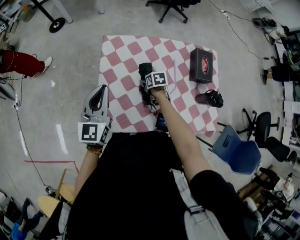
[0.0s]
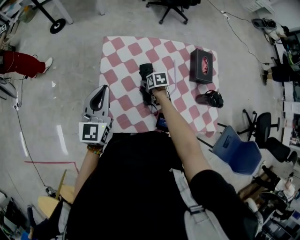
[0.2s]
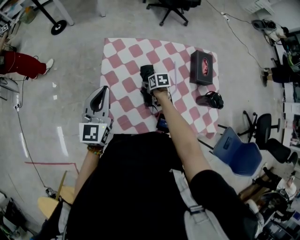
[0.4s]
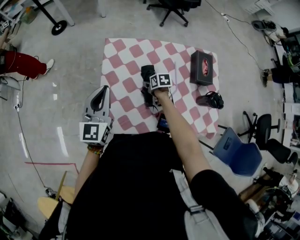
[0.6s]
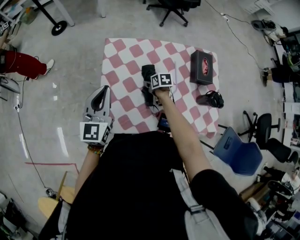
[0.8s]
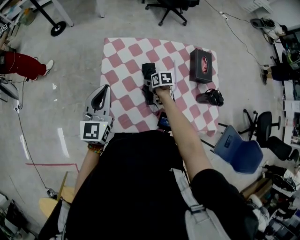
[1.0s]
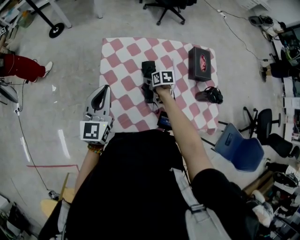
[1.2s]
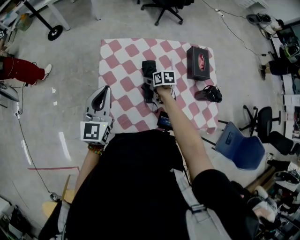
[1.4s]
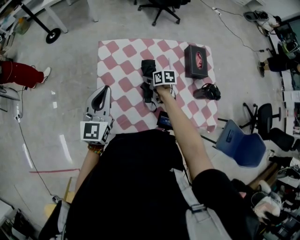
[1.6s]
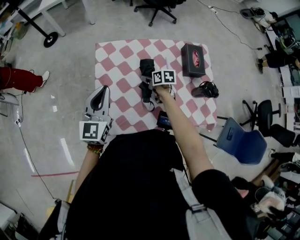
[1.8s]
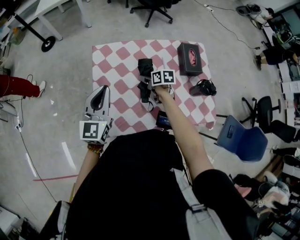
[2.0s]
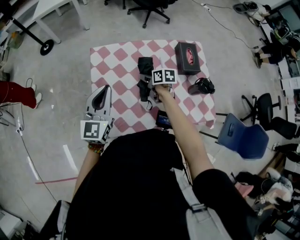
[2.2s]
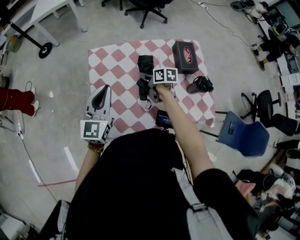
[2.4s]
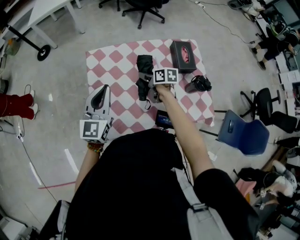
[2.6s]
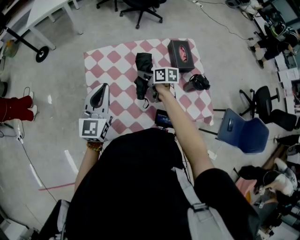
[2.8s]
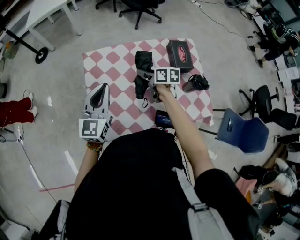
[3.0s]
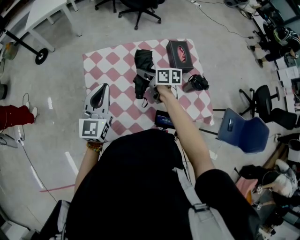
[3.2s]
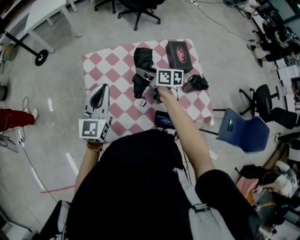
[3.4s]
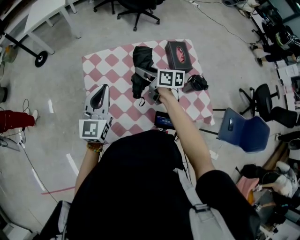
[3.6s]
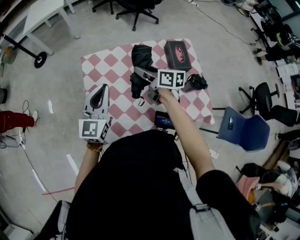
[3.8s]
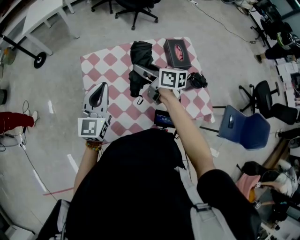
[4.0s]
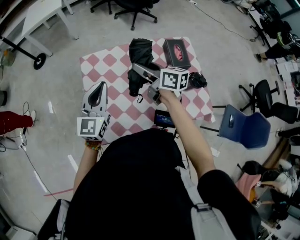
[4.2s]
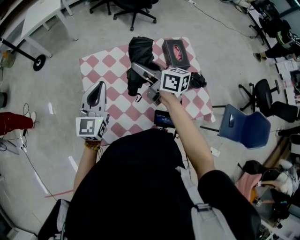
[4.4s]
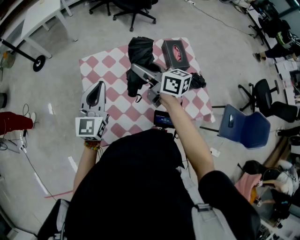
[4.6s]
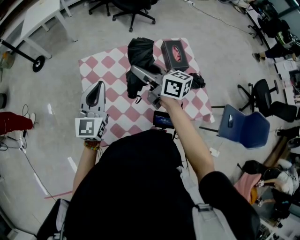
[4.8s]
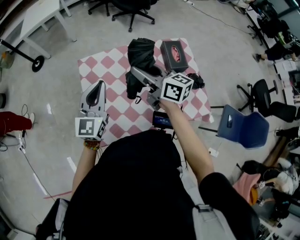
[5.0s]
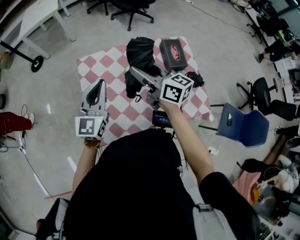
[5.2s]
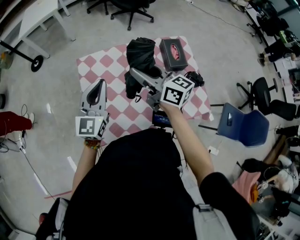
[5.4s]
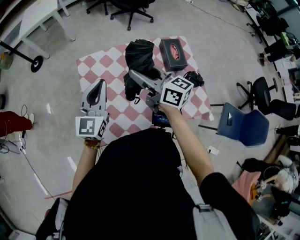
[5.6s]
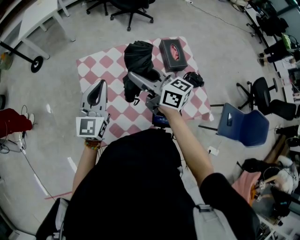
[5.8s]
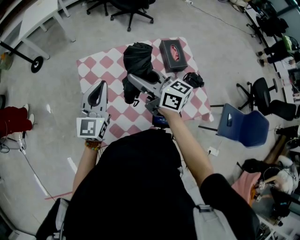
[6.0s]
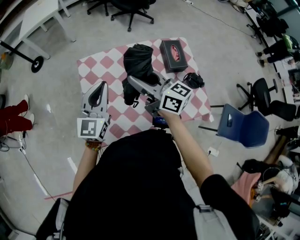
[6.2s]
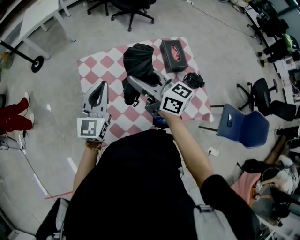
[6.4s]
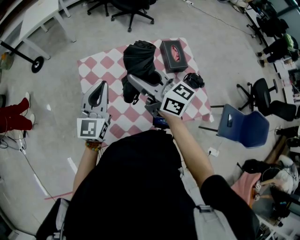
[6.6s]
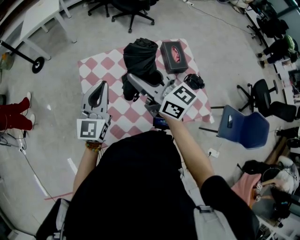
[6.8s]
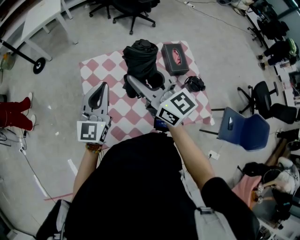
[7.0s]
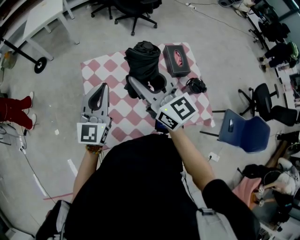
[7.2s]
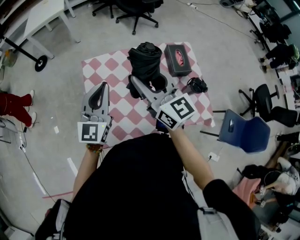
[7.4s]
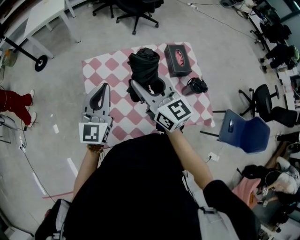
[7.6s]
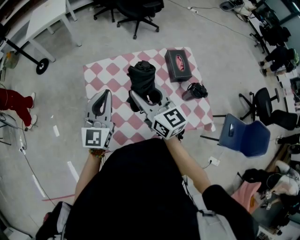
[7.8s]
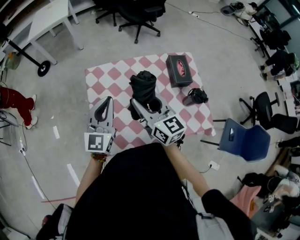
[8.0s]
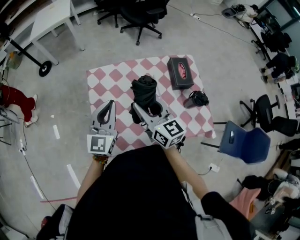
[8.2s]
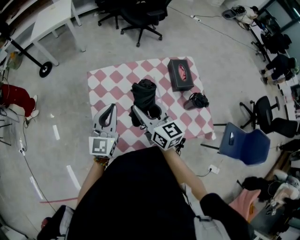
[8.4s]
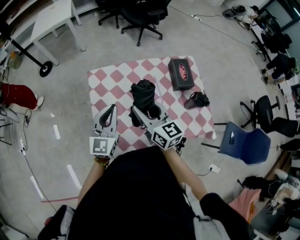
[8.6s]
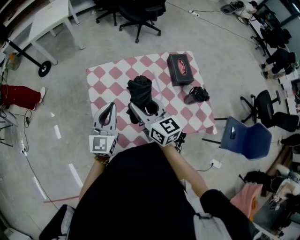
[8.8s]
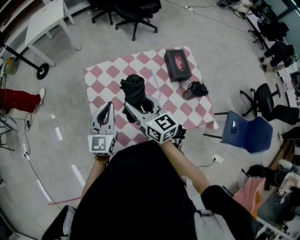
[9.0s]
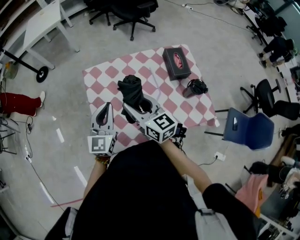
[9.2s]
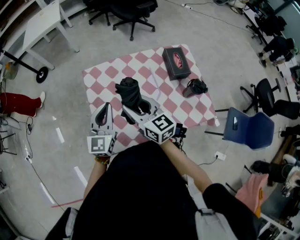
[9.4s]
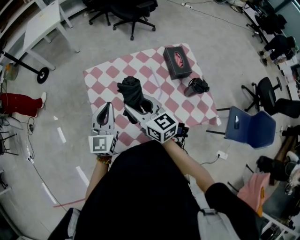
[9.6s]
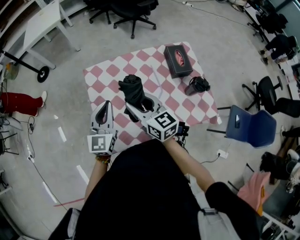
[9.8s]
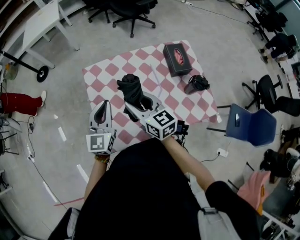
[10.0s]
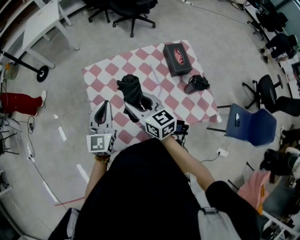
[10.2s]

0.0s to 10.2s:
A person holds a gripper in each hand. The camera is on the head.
0.0s to 1.4s: The grippers move only a little.
1.4s to 3.0s: The right gripper goes approximately 10 cm upward, and swivels approximately 20 degrees, while the left gripper moves to the right, about 5 cm.
3.0s to 4.4s: The right gripper travels upward by approximately 15 cm, and changes its angle by roughly 30 degrees.
4.4s to 5.8s: The right gripper shifts by some 5 cm.
5.8s to 7.2s: The right gripper goes some 5 cm upward, and swivels about 30 degrees.
7.2s to 8.8s: The left gripper moves downward, about 5 cm. The right gripper goes about 10 cm downward.
8.8s to 10.2s: The grippers stay close to where they were, moving slightly.

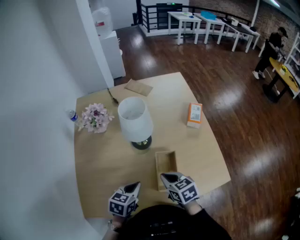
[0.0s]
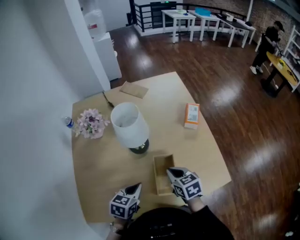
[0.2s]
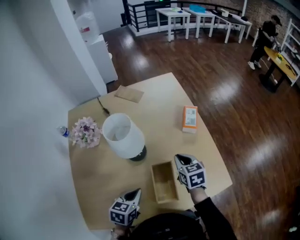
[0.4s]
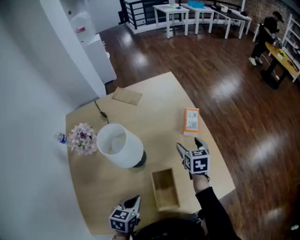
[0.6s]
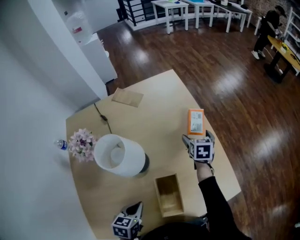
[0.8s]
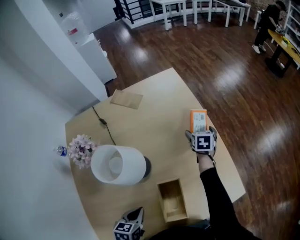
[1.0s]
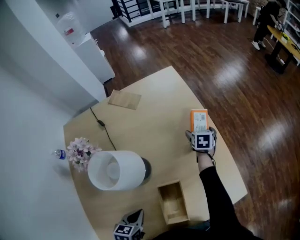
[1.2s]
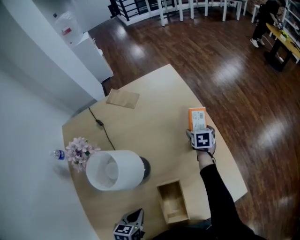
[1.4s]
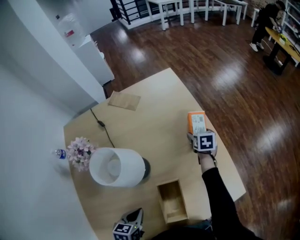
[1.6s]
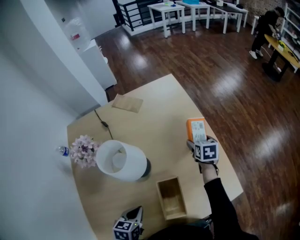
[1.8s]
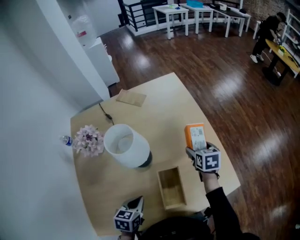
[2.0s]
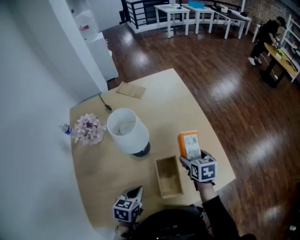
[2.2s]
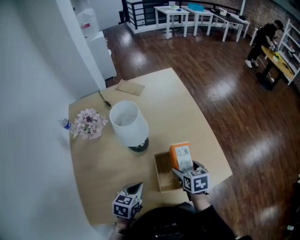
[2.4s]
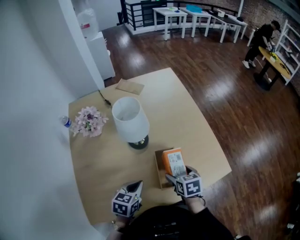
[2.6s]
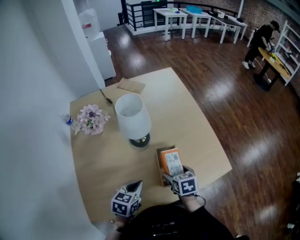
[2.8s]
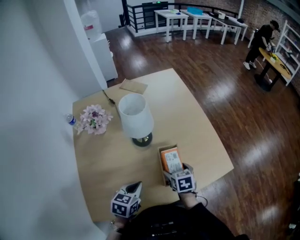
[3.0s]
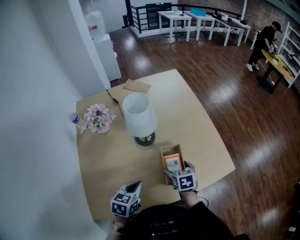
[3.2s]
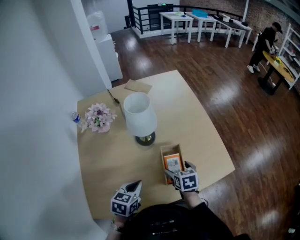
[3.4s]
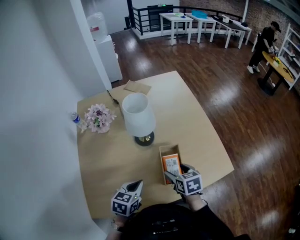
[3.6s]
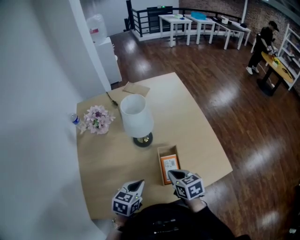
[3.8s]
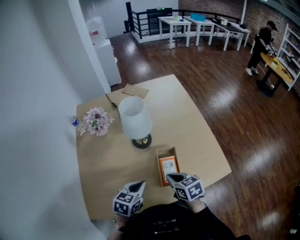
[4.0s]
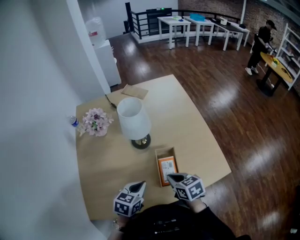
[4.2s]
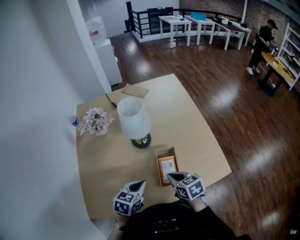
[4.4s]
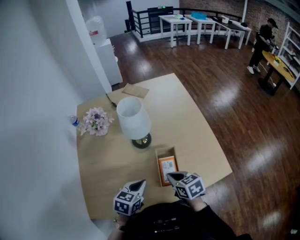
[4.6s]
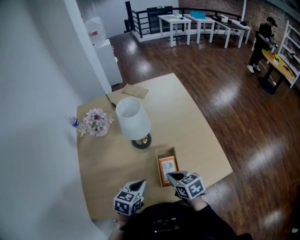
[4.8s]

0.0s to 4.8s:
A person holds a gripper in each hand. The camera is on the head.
0.0s to 1.6s: The left gripper moves roughly 5 cm. The right gripper shifts by roughly 40 cm, changes its angle by roughly 40 degrees, and opens its fingers.
1.6s to 3.2s: The right gripper goes about 35 cm backward. Meanwhile the left gripper goes approximately 10 cm backward.
3.2s to 4.8s: The right gripper is displaced upward by roughly 5 cm, changes its angle by roughly 20 degrees, and closes up, while the left gripper heads to the right, covering approximately 5 cm.

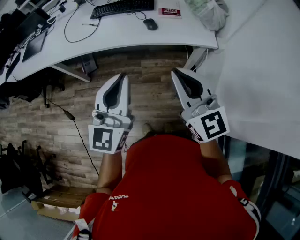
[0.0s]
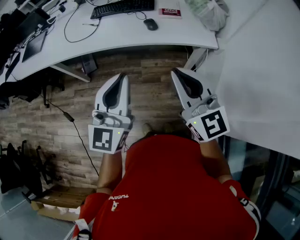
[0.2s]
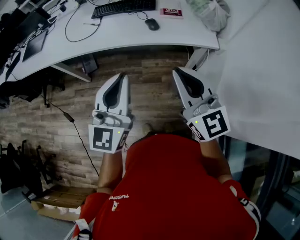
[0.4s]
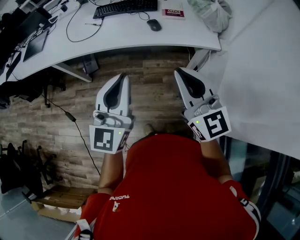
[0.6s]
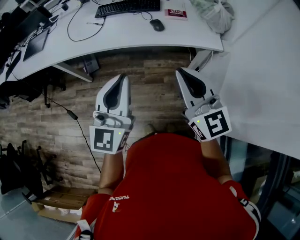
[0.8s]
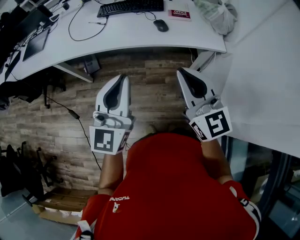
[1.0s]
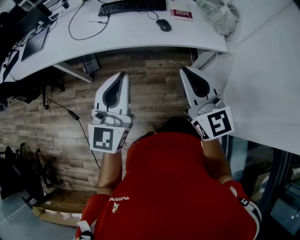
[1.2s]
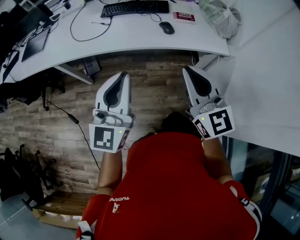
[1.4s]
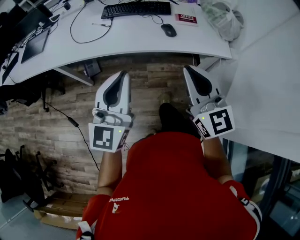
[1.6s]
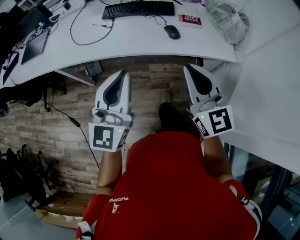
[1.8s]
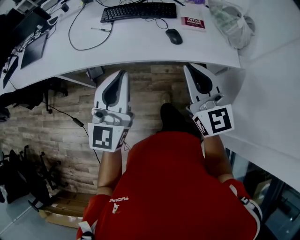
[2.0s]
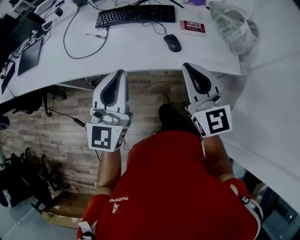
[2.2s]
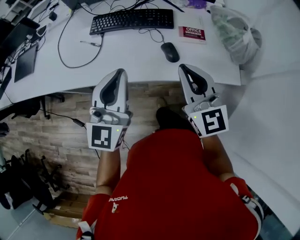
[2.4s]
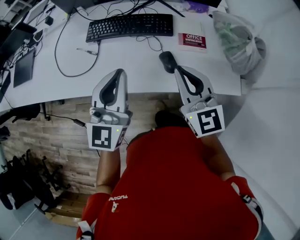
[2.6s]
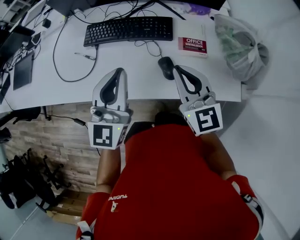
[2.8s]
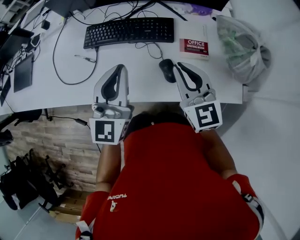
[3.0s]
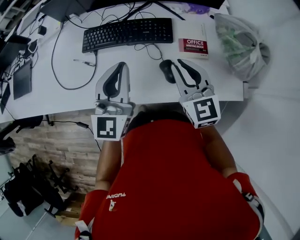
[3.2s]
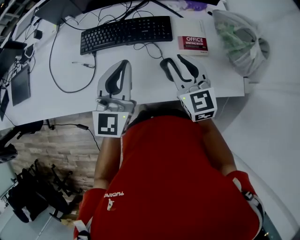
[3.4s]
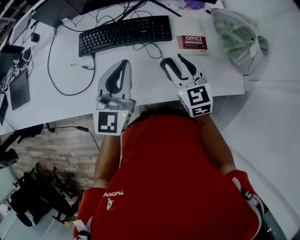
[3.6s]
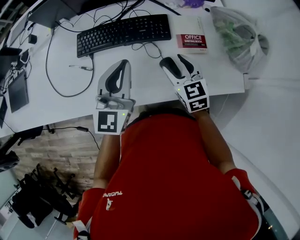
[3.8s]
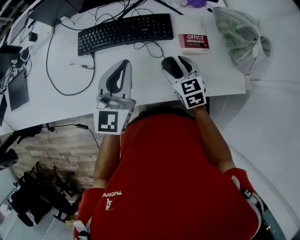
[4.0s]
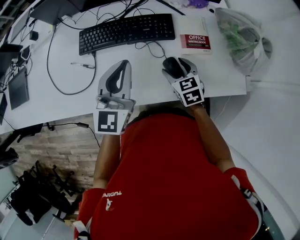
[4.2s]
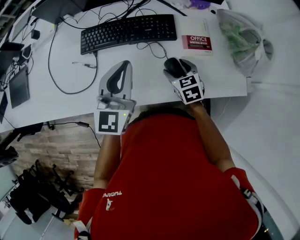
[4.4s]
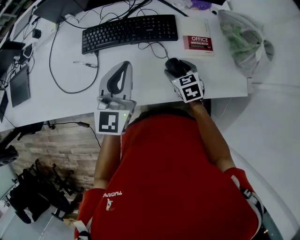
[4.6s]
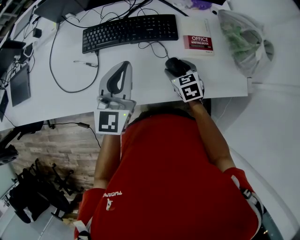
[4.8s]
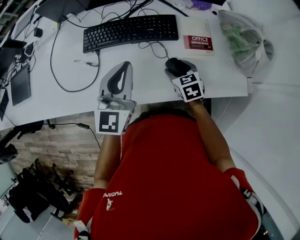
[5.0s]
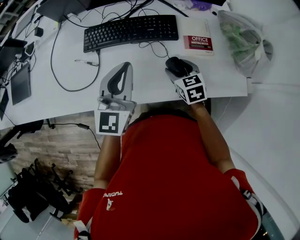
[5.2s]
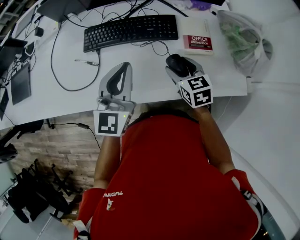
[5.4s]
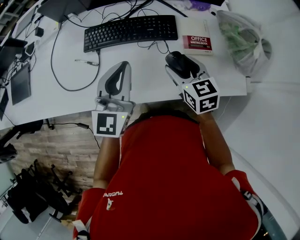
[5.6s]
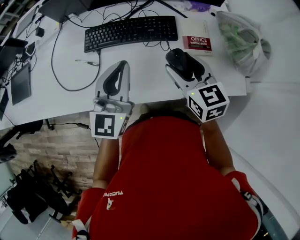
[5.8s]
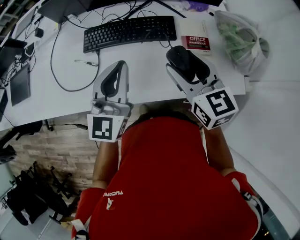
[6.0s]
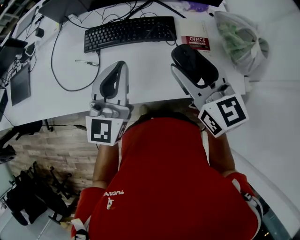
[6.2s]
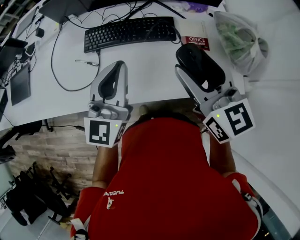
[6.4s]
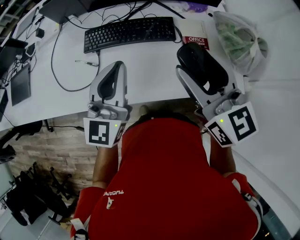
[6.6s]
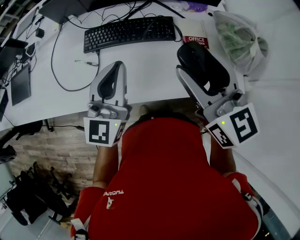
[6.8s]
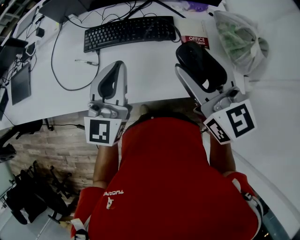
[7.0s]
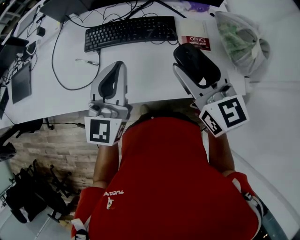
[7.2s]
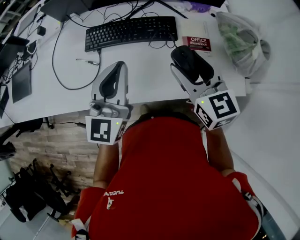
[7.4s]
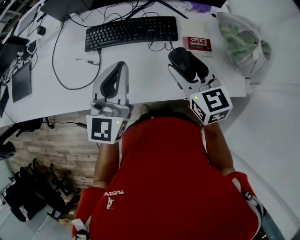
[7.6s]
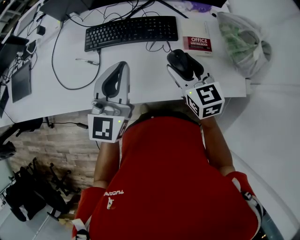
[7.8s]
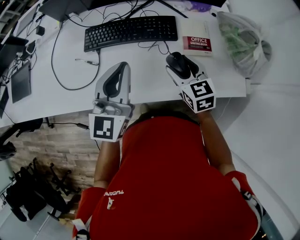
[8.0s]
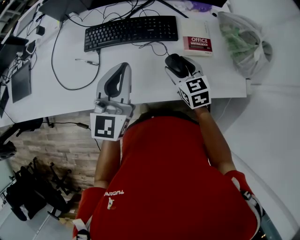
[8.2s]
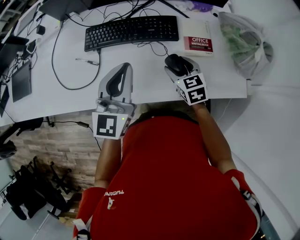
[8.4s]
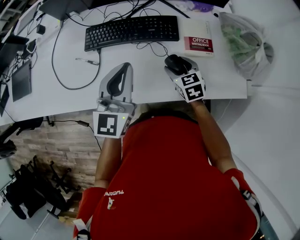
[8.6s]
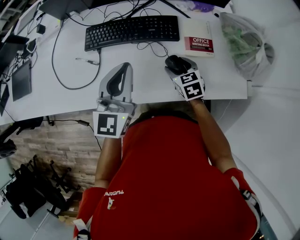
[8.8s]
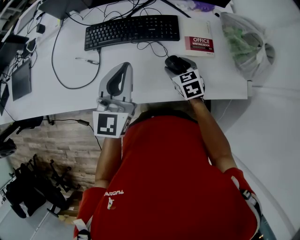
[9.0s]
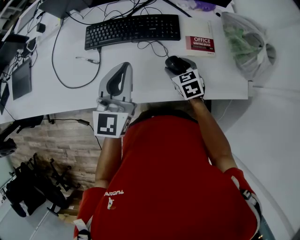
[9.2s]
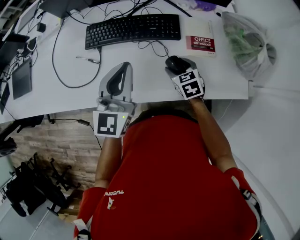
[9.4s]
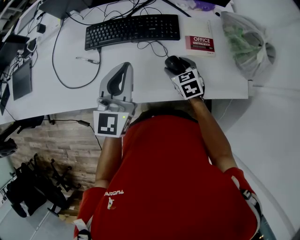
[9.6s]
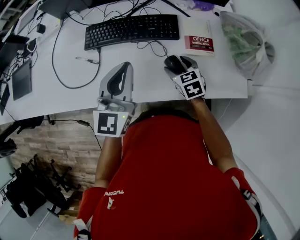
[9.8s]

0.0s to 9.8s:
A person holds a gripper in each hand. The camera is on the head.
0.0s to 1.4s: The grippers both shift to the left by approximately 10 cm.
1.4s to 2.8s: Both grippers move forward, some 35 cm.
2.8s to 4.2s: The left gripper is displaced forward and downward by about 10 cm. The right gripper travels downward by about 20 cm, swivels roughly 30 degrees, and opens its fingers.
4.2s to 5.6s: The right gripper shifts approximately 10 cm upward.
5.6s to 7.0s: The right gripper is displaced upward by roughly 20 cm, and turns by approximately 20 degrees.
7.0s to 8.4s: The right gripper heads downward, covering about 25 cm, and rotates roughly 30 degrees.
8.4s to 9.8s: There are only small adjustments of the grippers.
